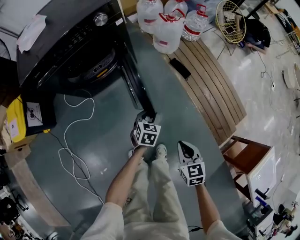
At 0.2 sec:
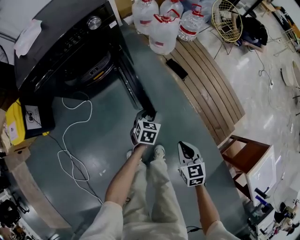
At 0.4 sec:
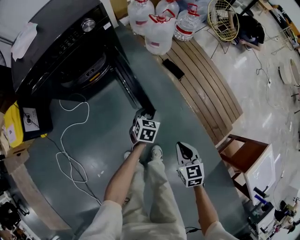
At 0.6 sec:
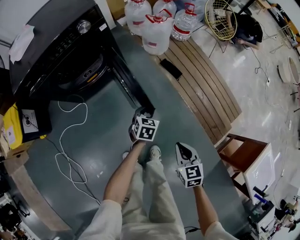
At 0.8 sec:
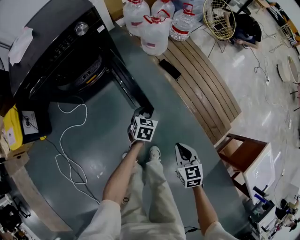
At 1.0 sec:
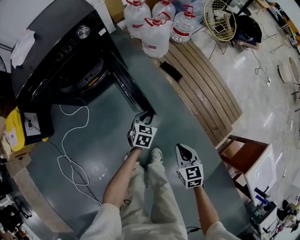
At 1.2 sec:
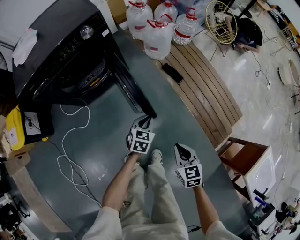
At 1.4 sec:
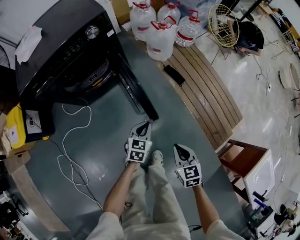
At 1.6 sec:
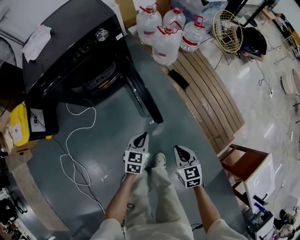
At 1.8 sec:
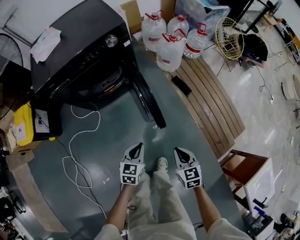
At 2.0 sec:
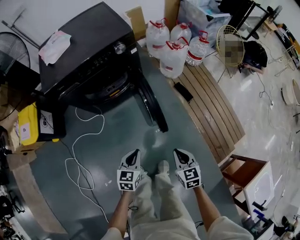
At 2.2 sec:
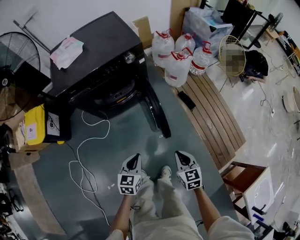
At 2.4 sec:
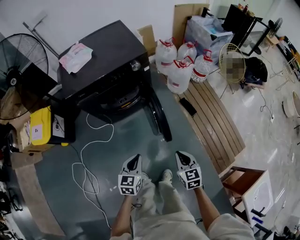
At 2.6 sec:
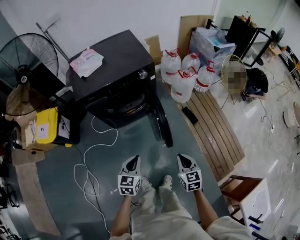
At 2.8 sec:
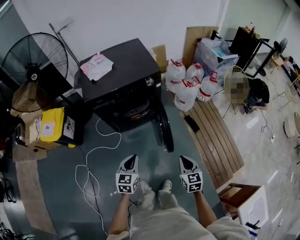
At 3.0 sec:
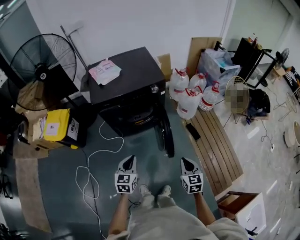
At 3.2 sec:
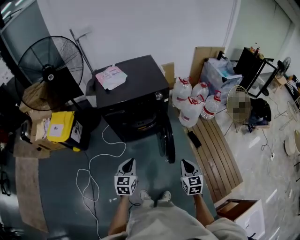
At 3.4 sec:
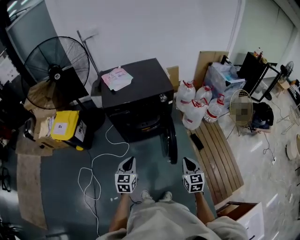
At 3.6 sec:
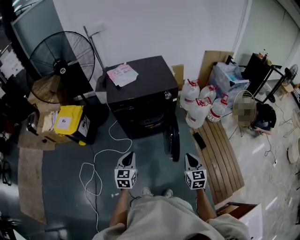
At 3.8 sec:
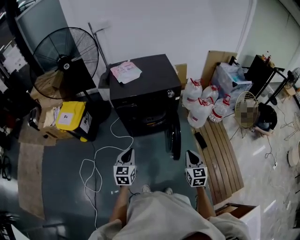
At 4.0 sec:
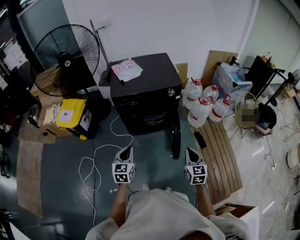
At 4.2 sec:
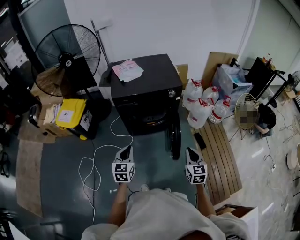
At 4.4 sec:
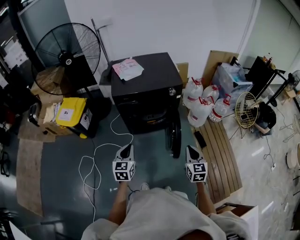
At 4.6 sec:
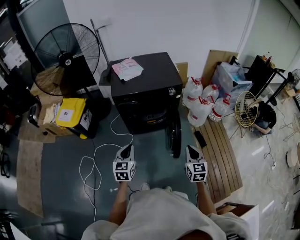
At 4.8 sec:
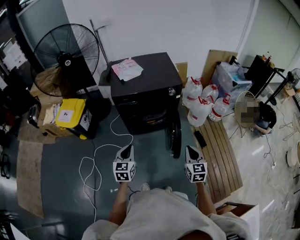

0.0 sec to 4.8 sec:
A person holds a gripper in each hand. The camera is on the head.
0.0 sec to 1.6 sec: The left gripper heads upward and backward, covering approximately 10 cm, and closes.
1.6 sec to 3.2 sec: The left gripper travels upward and to the left by roughly 40 cm, and rotates roughly 30 degrees. Meanwhile the right gripper travels upward by roughly 25 cm.
3.2 sec to 4.8 sec: The left gripper heads to the left, covering some 5 cm. The right gripper changes place by some 5 cm.

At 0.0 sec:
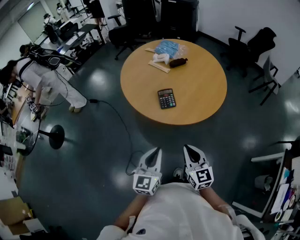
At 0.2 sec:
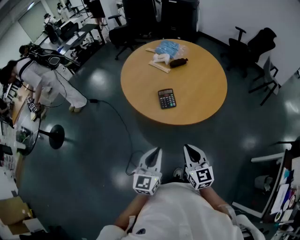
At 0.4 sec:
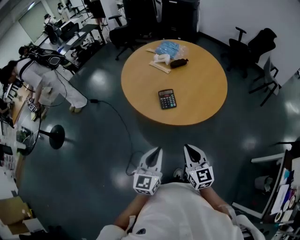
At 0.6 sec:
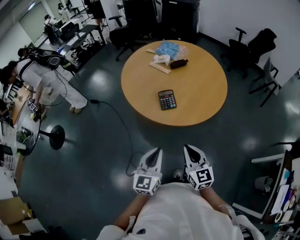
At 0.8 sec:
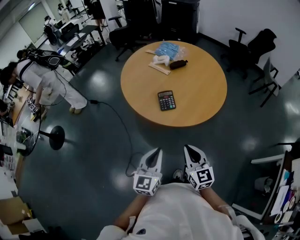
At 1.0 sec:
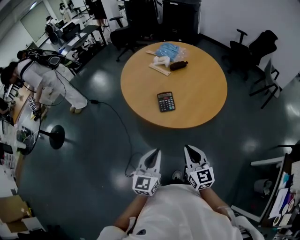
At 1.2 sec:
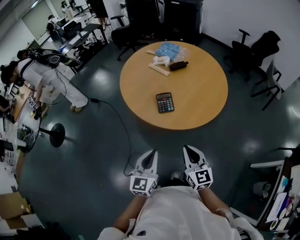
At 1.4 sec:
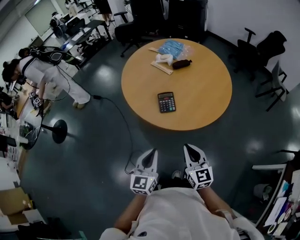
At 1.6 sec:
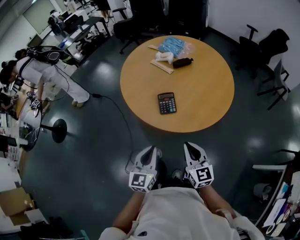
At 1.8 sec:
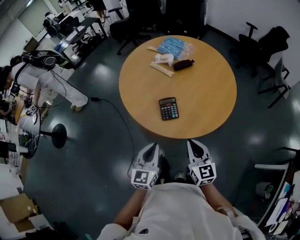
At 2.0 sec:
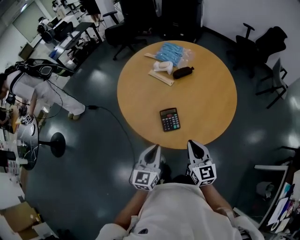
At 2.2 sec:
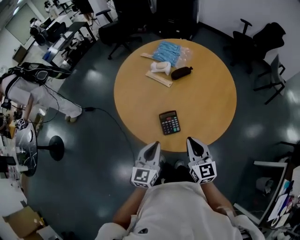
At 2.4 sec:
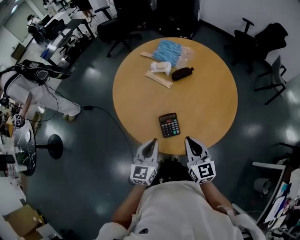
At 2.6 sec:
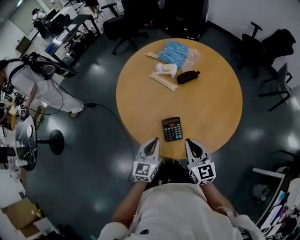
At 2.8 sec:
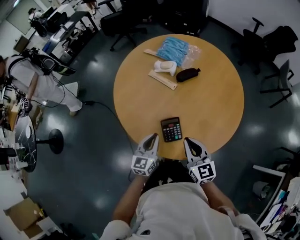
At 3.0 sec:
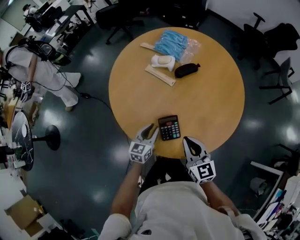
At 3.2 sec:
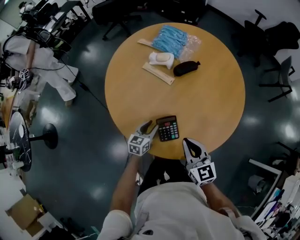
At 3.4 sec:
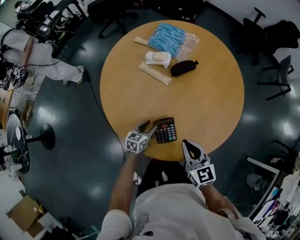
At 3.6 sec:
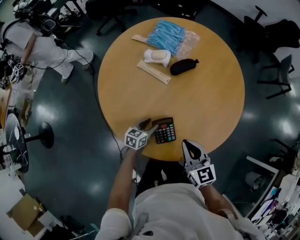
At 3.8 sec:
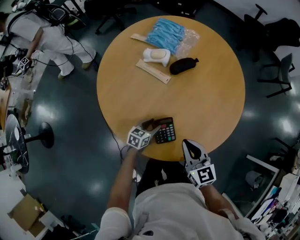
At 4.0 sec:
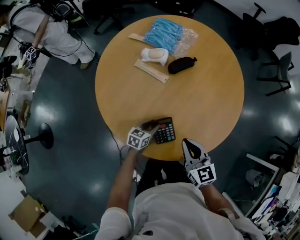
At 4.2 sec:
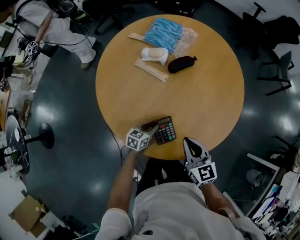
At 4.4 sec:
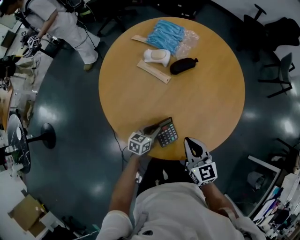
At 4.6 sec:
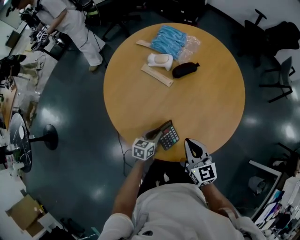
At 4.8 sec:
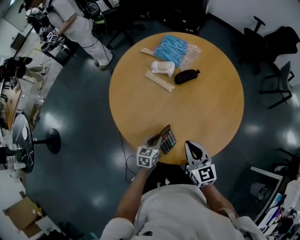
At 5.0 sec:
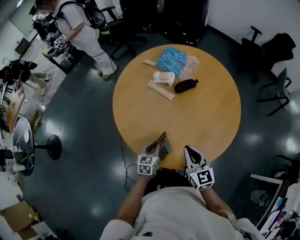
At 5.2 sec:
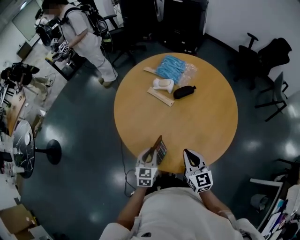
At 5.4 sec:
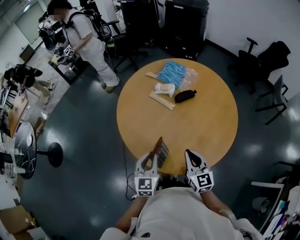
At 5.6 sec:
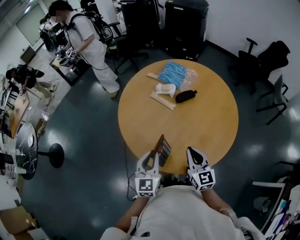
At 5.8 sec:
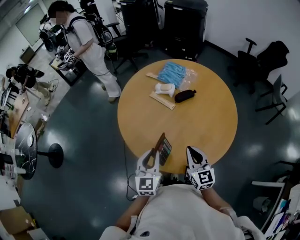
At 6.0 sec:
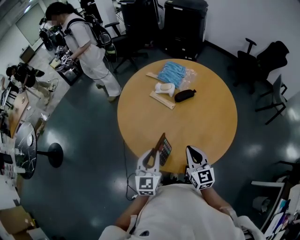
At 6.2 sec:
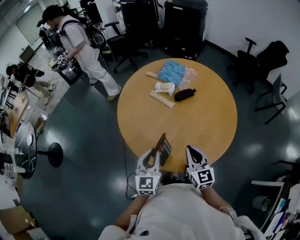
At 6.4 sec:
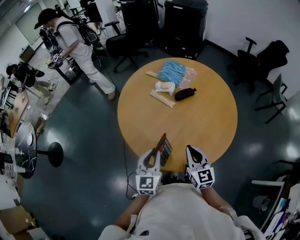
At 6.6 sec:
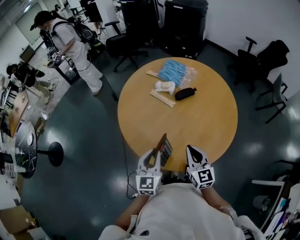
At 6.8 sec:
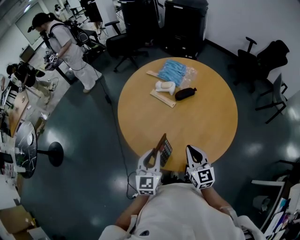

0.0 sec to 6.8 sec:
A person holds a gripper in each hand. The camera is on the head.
0.0 sec to 1.4 sec: The right gripper goes about 5 cm forward; the left gripper shifts by some 5 cm.
1.4 sec to 2.8 sec: Both grippers travel together forward, roughly 30 cm.
2.8 sec to 4.0 sec: The right gripper travels downward by about 5 cm. Meanwhile the left gripper goes about 20 cm downward, changes its angle by roughly 40 degrees, and opens.
4.0 sec to 5.4 sec: The right gripper heads upward, covering some 5 cm. The left gripper is displaced upward by approximately 25 cm, turns by approximately 40 degrees, and closes.
5.4 sec to 6.8 sec: The grippers stay close to where they were, moving slightly.

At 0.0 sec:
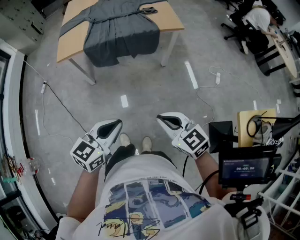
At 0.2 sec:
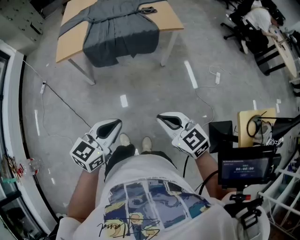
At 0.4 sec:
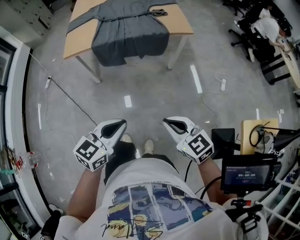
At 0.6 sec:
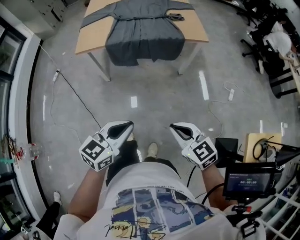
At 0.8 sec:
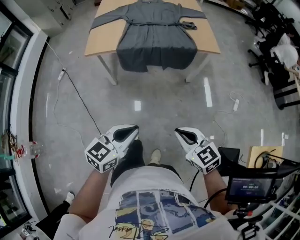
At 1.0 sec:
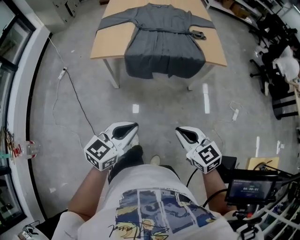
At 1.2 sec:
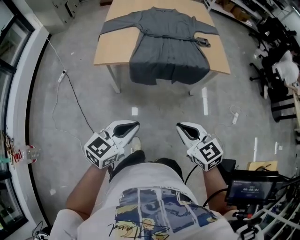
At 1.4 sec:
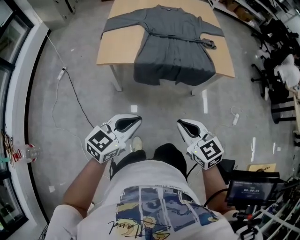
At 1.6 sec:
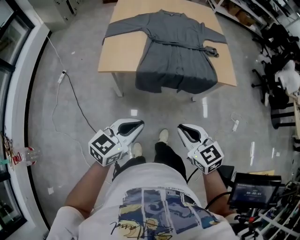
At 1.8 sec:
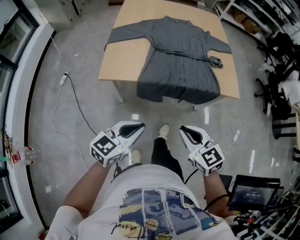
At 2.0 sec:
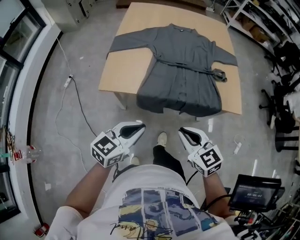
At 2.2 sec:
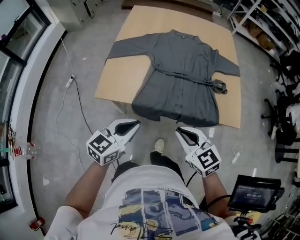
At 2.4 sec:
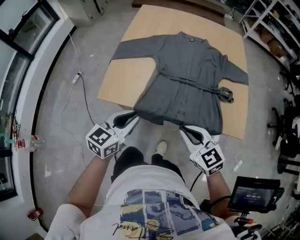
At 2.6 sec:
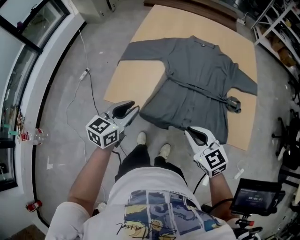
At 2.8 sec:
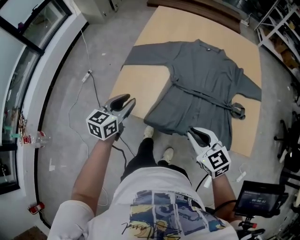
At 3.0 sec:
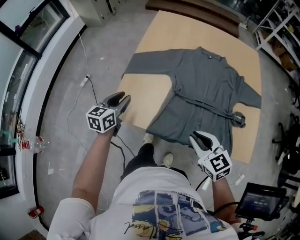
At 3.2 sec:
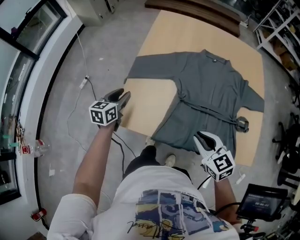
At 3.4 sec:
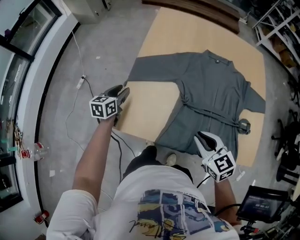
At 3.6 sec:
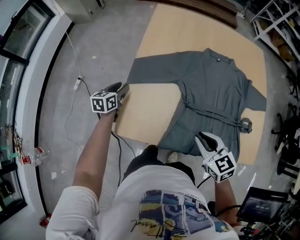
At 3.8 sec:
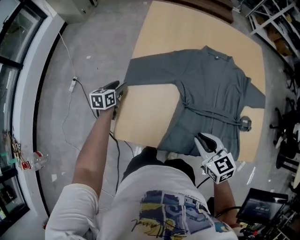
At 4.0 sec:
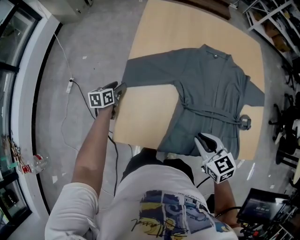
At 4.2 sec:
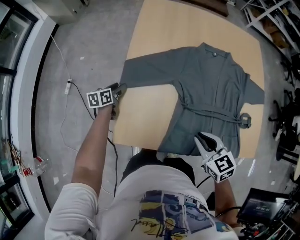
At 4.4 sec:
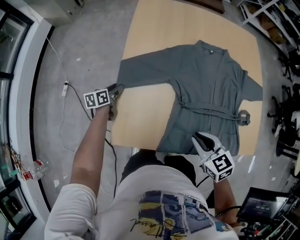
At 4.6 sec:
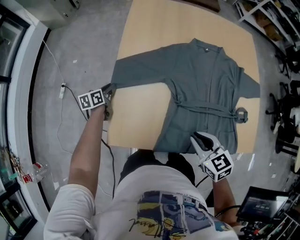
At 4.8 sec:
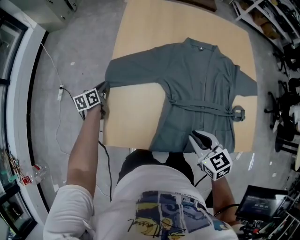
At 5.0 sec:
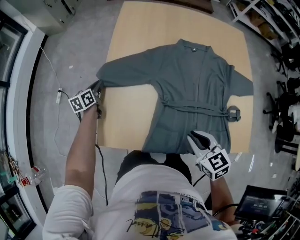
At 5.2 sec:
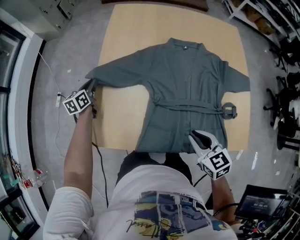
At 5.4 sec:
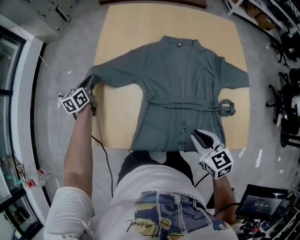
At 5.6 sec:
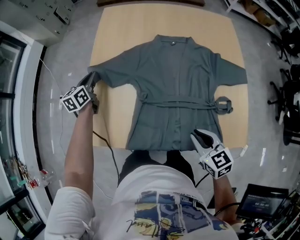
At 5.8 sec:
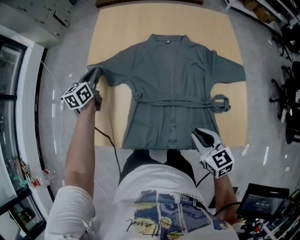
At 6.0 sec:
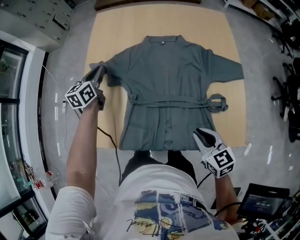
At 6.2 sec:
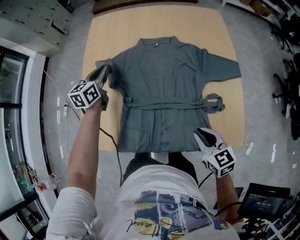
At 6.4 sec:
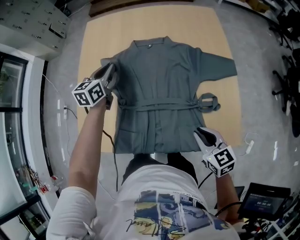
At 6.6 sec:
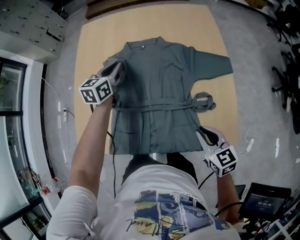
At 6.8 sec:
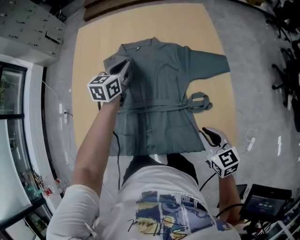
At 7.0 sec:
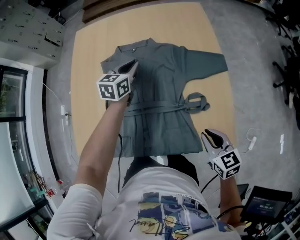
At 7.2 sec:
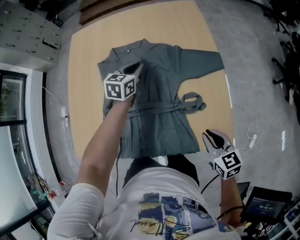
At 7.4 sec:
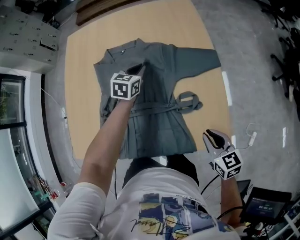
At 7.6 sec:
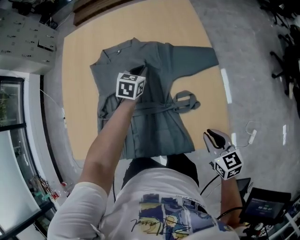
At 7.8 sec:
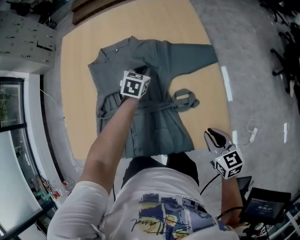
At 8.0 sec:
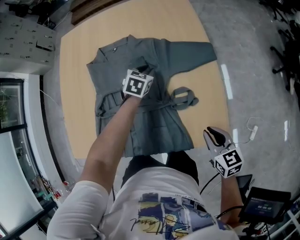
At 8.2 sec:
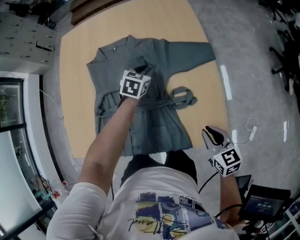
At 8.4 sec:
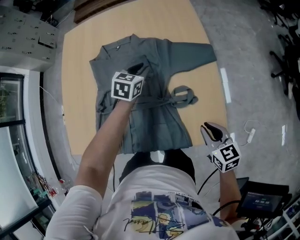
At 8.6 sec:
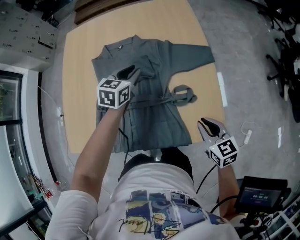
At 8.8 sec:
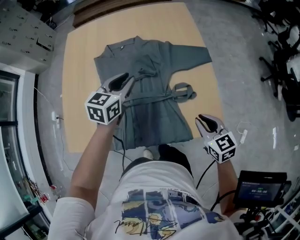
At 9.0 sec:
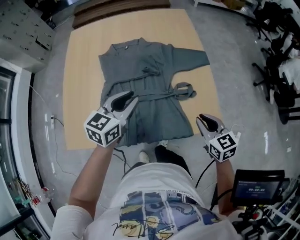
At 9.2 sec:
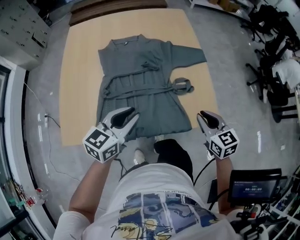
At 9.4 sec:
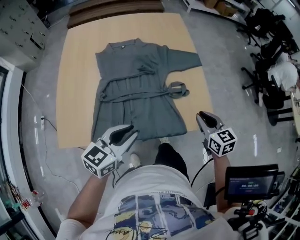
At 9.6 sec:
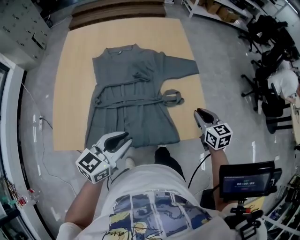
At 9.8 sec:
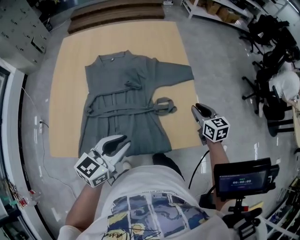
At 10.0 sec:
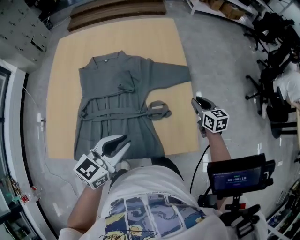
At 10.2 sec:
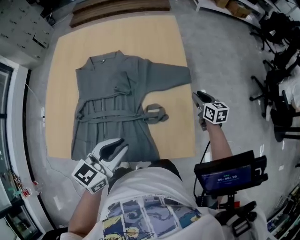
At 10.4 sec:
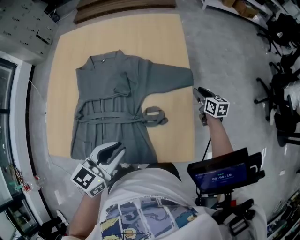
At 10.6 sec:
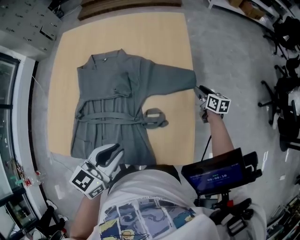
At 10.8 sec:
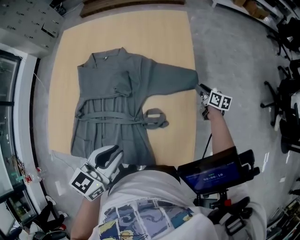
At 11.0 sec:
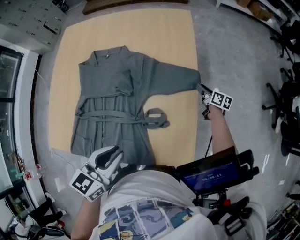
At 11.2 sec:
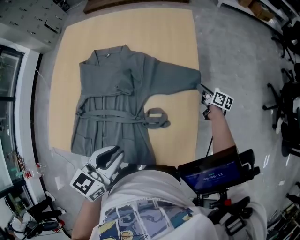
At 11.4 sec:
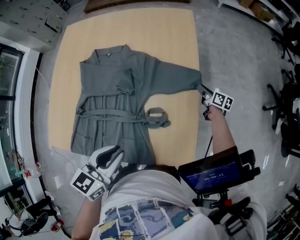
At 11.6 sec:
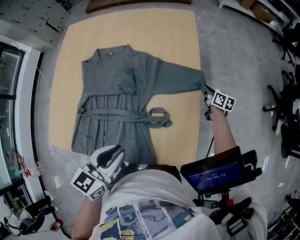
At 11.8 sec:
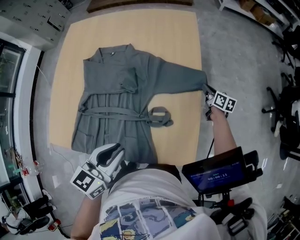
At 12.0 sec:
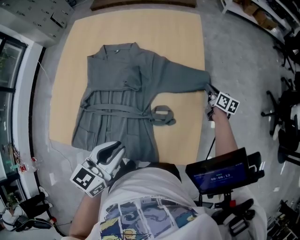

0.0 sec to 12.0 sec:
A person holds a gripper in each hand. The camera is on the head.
0.0 sec to 1.6 sec: Both grippers move forward and to the left, about 30 cm.
1.6 sec to 3.0 sec: The right gripper shifts by approximately 35 cm, while the left gripper changes place by roughly 40 cm, and changes its angle by some 40 degrees.
3.0 sec to 4.4 sec: The right gripper goes approximately 10 cm forward; the left gripper shifts some 30 cm forward and downward, and rotates about 30 degrees.
4.4 sec to 6.0 sec: The left gripper moves to the right and upward, roughly 30 cm, turns by about 30 degrees, and closes its fingers. The right gripper shifts approximately 25 cm to the right.
6.0 sec to 7.6 sec: The left gripper heads to the right, covering roughly 40 cm, and turns by some 40 degrees. Meanwhile the right gripper heads to the right, covering some 20 cm.
7.6 sec to 9.0 sec: The right gripper is displaced upward and to the left by approximately 10 cm. The left gripper shifts roughly 30 cm backward and upward, and turns by roughly 30 degrees.
9.0 sec to 10.4 sec: The left gripper moves to the right, approximately 15 cm, while the right gripper is displaced forward, to the right and downward by approximately 40 cm.
10.4 sec to 12.0 sec: The right gripper moves forward, approximately 5 cm.
